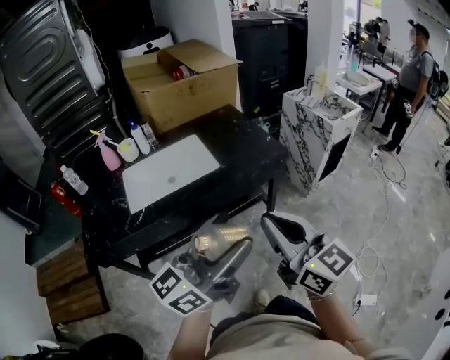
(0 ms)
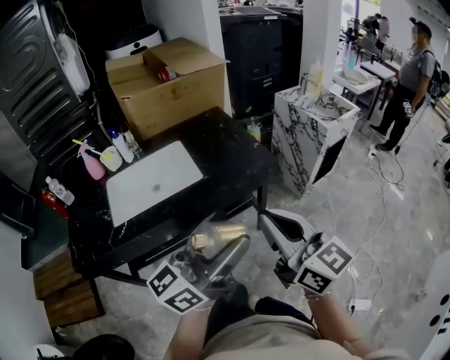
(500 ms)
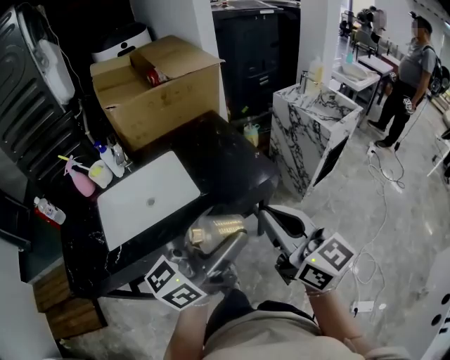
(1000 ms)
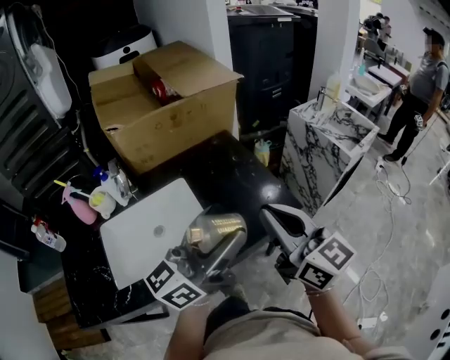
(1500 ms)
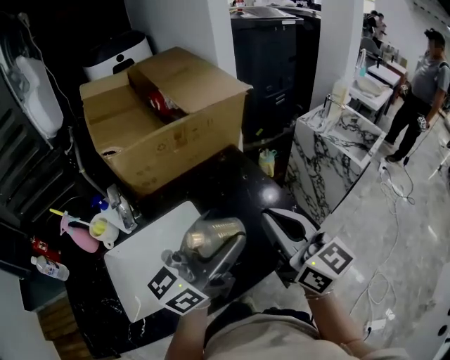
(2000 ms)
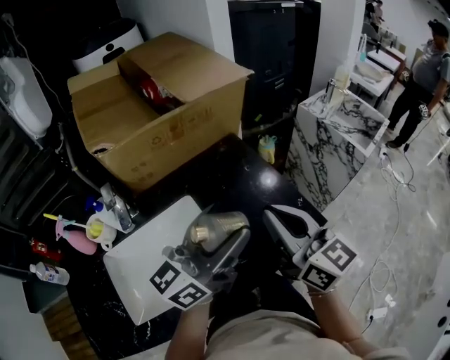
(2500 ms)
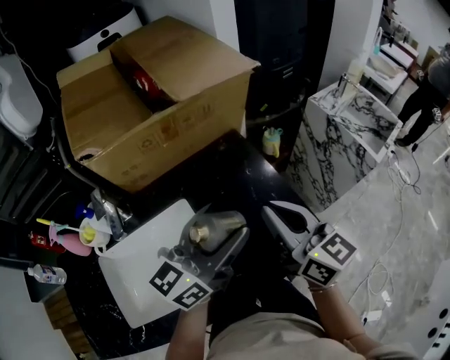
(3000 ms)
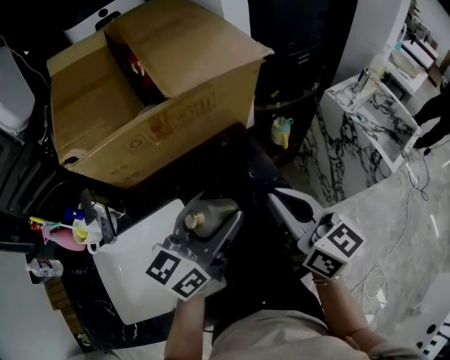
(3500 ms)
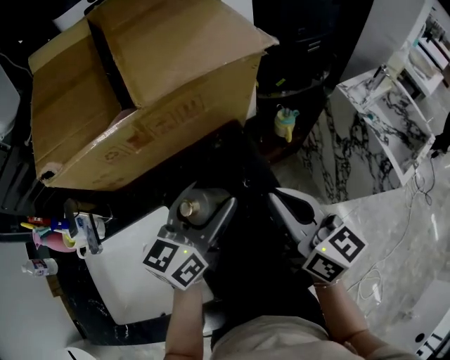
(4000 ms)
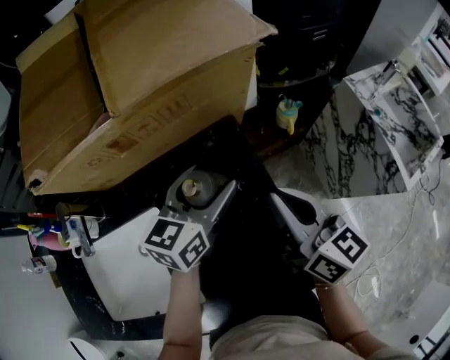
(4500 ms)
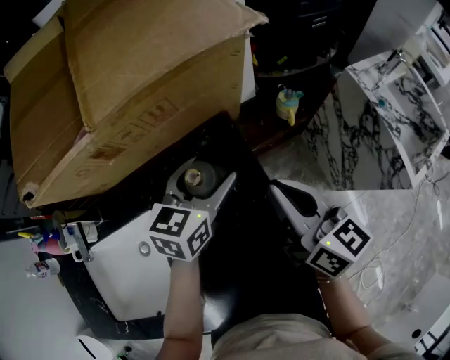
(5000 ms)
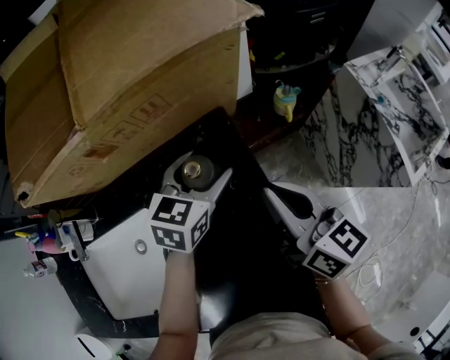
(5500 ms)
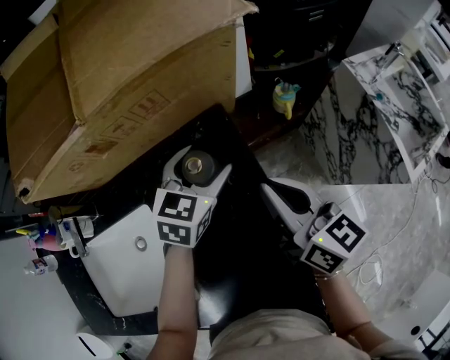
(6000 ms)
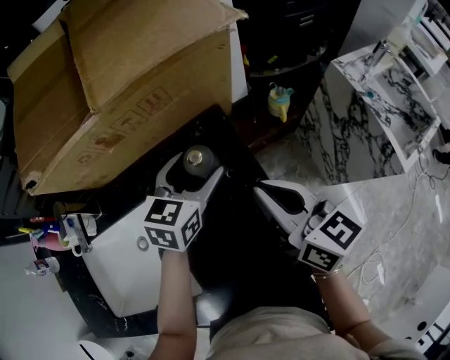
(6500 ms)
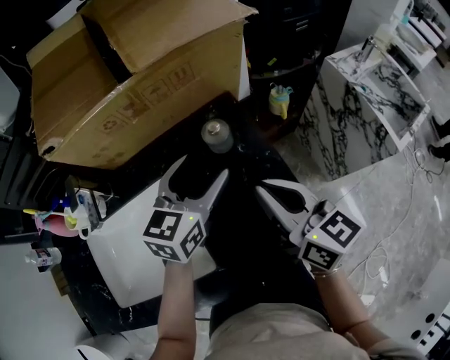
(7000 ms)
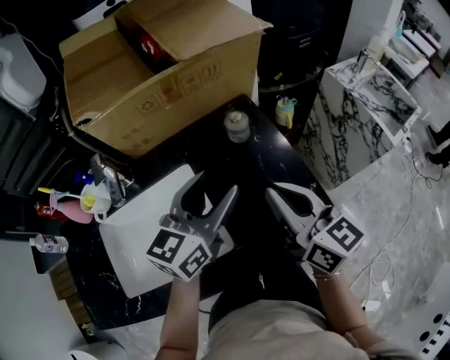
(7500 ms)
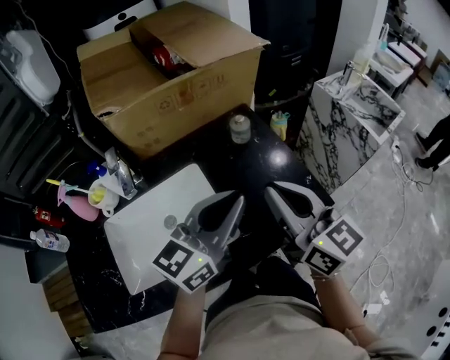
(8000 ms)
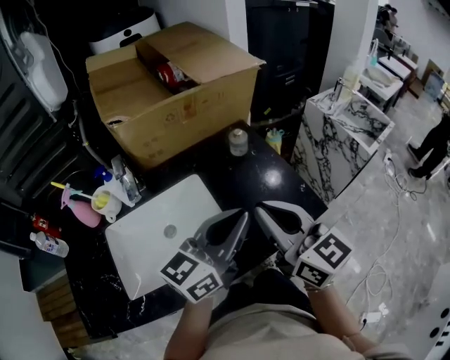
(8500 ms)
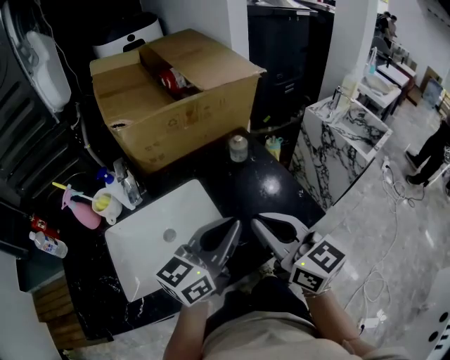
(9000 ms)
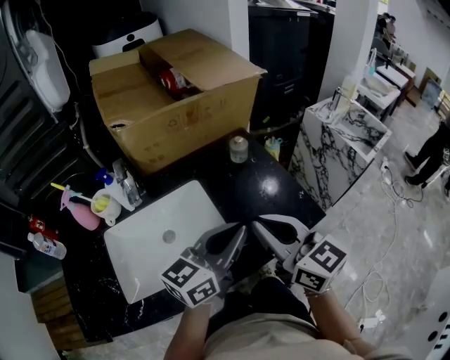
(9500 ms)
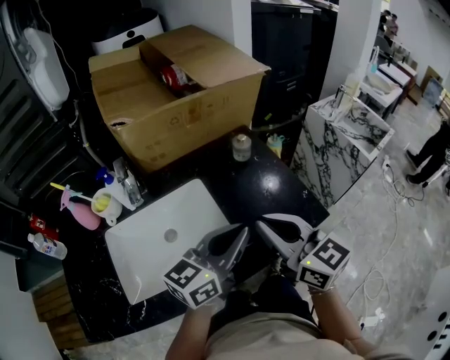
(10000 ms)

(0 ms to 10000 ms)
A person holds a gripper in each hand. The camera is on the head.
0 ms - 2000 ms: The pair of grippers is taken forward, approximately 40 cm.
2000 ms - 4000 ms: Both grippers travel together forward and downward, roughly 30 cm. The left gripper rotates roughly 30 degrees.
4000 ms - 6000 ms: The right gripper is displaced downward by about 5 cm; the left gripper is displaced downward and forward by approximately 15 cm, and turns by approximately 30 degrees.
6000 ms - 8000 ms: The left gripper is displaced backward and upward by roughly 40 cm, points its fingers approximately 40 degrees further upward, and closes its fingers. The right gripper heads backward, upward and to the left, covering roughly 30 cm, and changes its angle by approximately 20 degrees.
8000 ms - 10000 ms: The left gripper ends up roughly 5 cm from where it was; the right gripper ends up approximately 5 cm from where it was.

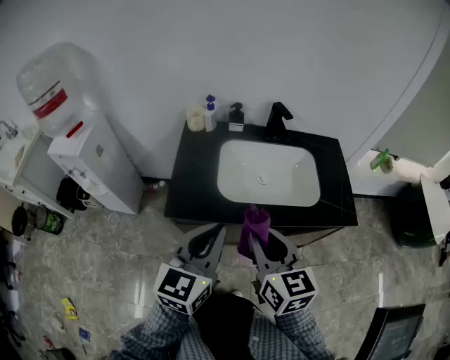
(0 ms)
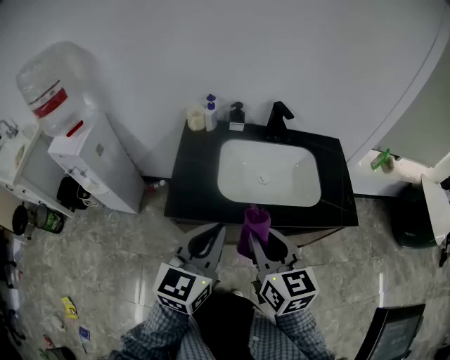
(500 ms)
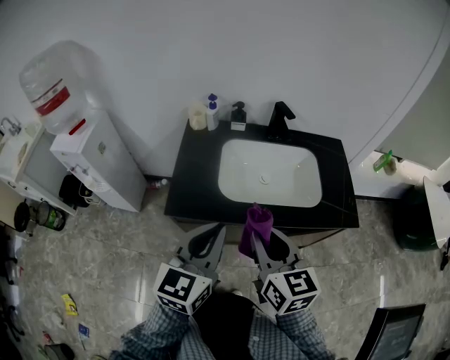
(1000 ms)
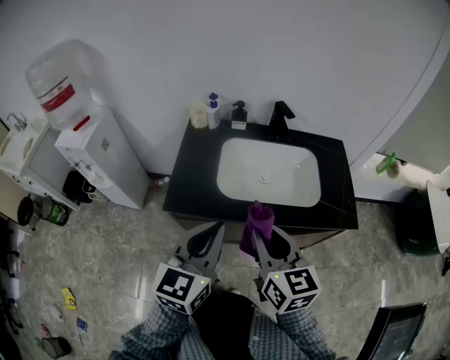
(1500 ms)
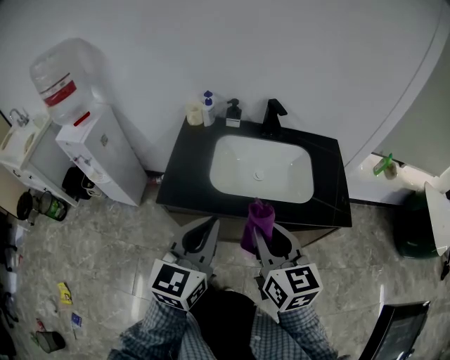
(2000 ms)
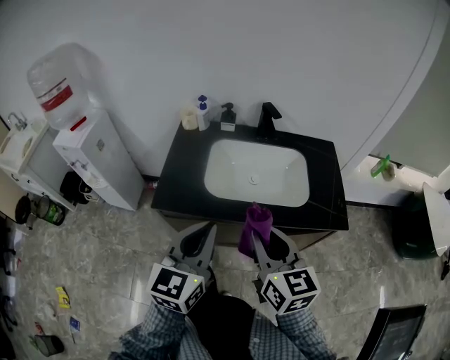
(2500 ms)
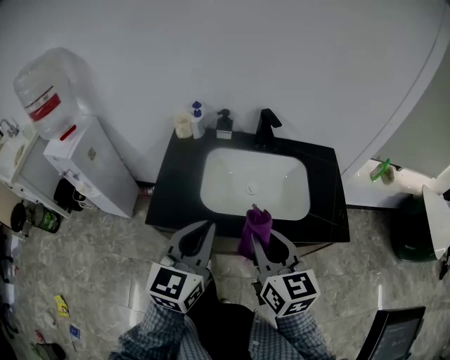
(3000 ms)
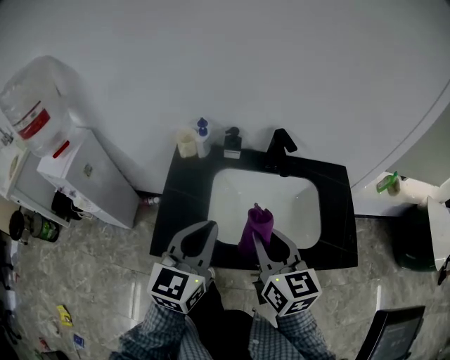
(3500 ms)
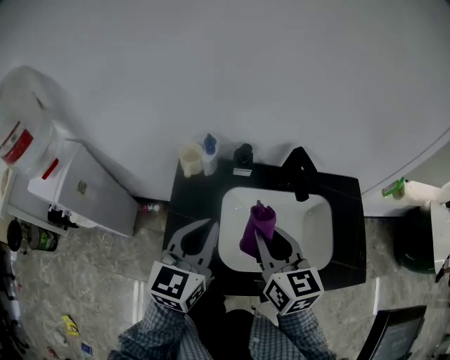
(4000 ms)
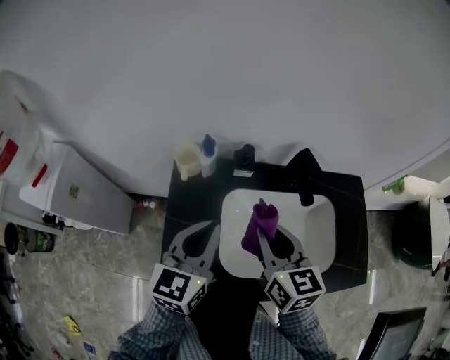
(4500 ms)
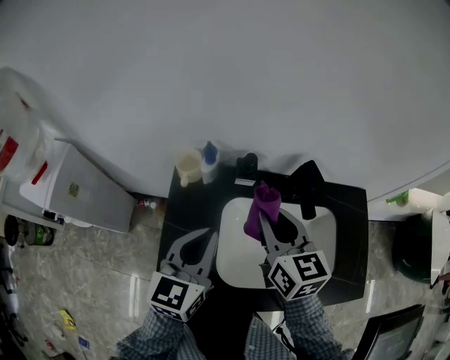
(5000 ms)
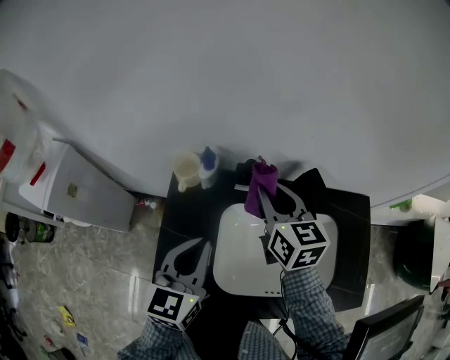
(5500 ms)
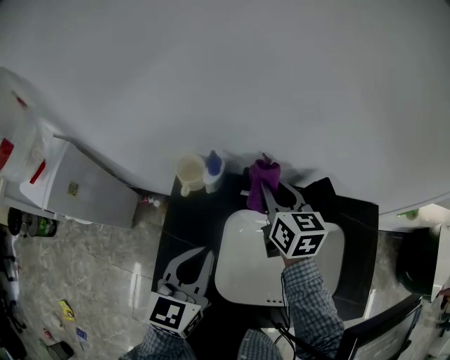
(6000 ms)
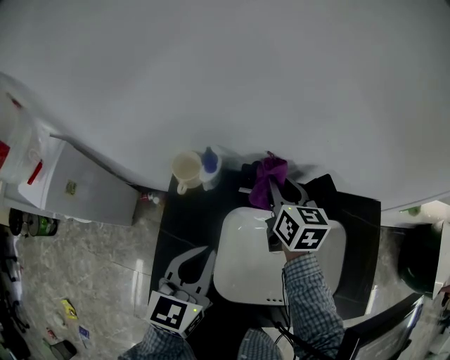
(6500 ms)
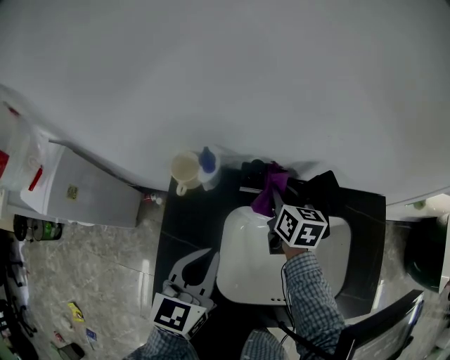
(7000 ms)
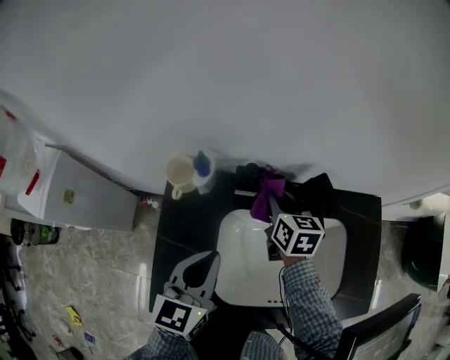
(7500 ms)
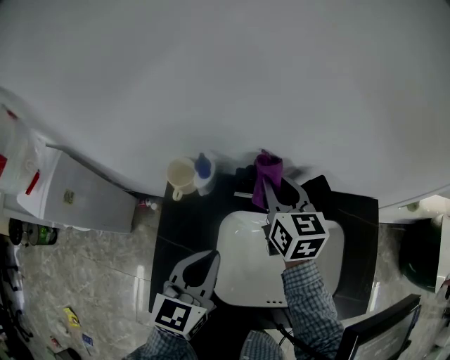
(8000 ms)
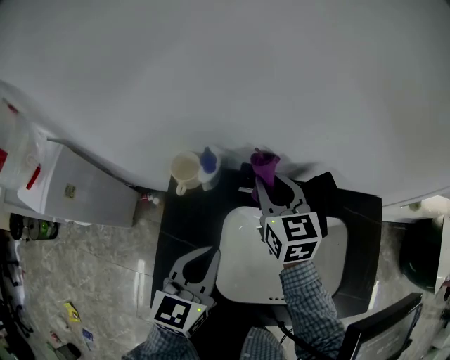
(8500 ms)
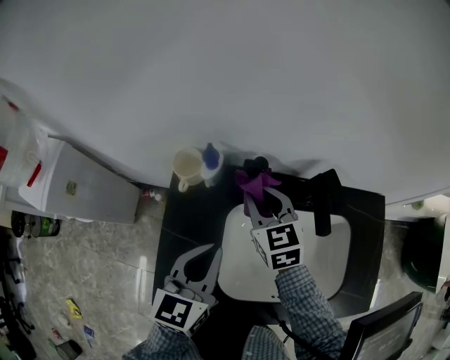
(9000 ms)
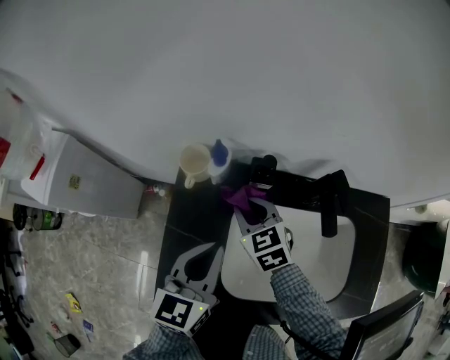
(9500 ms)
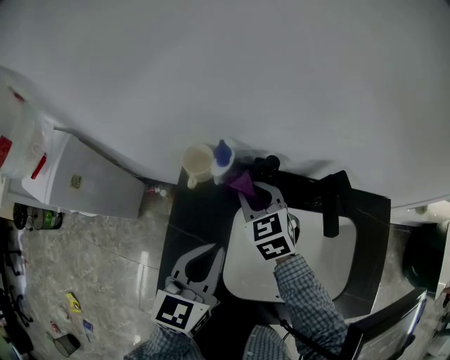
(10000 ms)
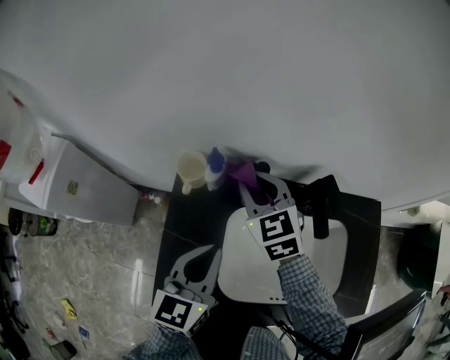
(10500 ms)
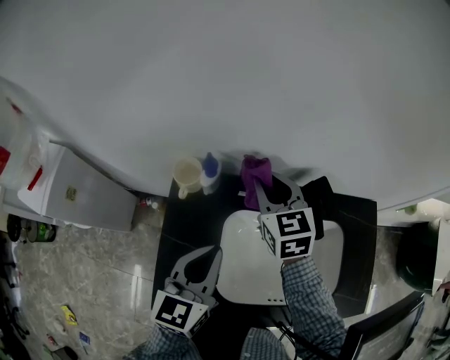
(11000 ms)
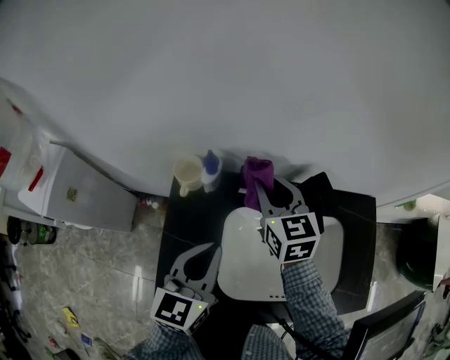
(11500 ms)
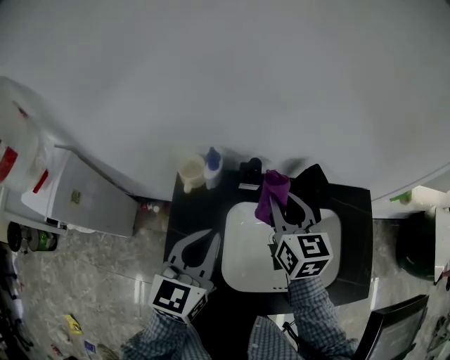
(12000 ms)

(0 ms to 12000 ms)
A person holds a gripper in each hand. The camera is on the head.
0 ms - 2000 ms: The right gripper travels to the right by roughly 5 cm. Meanwhile the left gripper ends up about 5 cm from where it was.
2000 ms - 4000 ms: The grippers both shift forward by roughly 30 cm.
4000 ms - 6000 ms: The right gripper shifts some 25 cm forward, while the left gripper heads downward and forward, covering about 10 cm.
6000 ms - 8000 ms: The right gripper goes downward and returns, some 10 cm each way.
8000 ms - 10000 ms: The right gripper moves to the left and downward, about 15 cm, and swivels roughly 30 degrees.
10000 ms - 12000 ms: The right gripper goes roughly 15 cm upward, to the right and backward, and turns by approximately 30 degrees; the left gripper shifts some 5 cm upward.

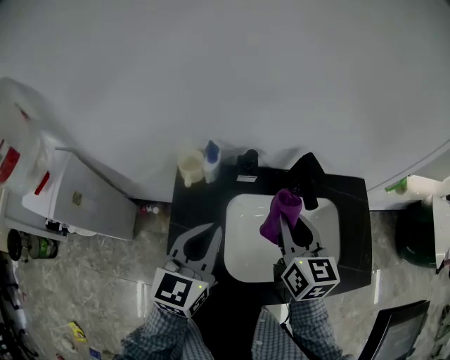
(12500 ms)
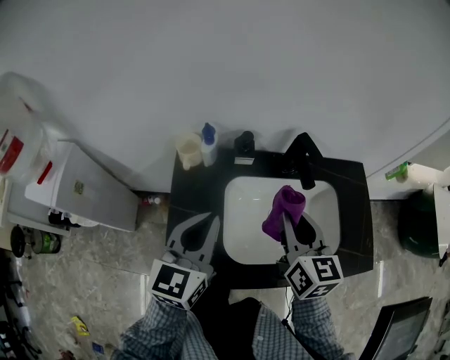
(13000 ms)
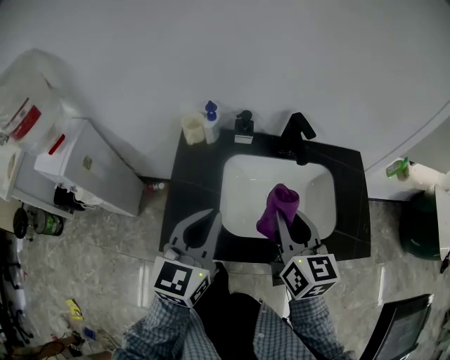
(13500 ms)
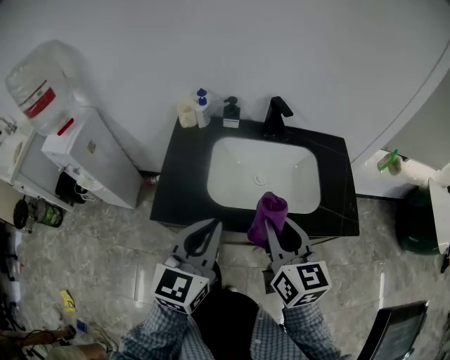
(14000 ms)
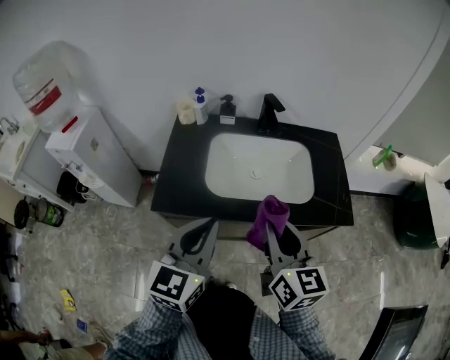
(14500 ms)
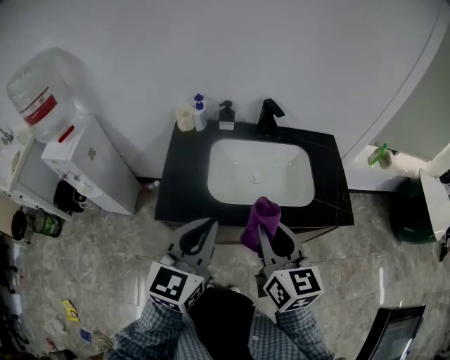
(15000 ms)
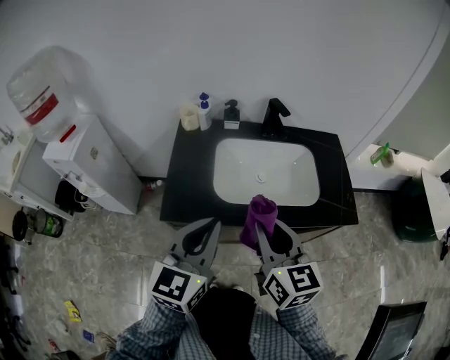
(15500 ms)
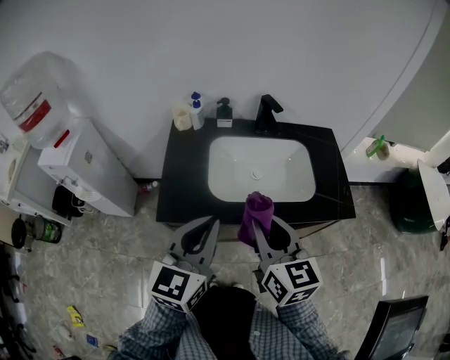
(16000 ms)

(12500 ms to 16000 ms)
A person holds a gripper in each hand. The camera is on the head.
12500 ms - 14500 ms: The left gripper goes about 35 cm backward and to the right. The right gripper shifts some 35 cm backward.
14500 ms - 16000 ms: The right gripper travels to the left by roughly 5 cm.

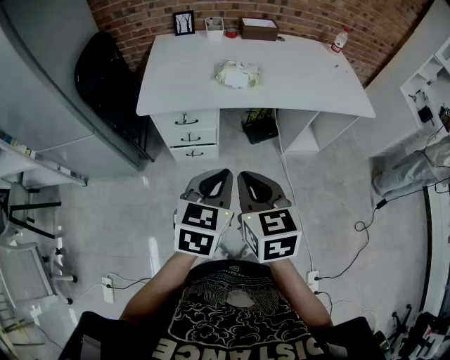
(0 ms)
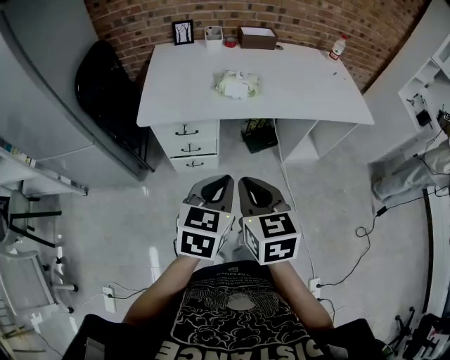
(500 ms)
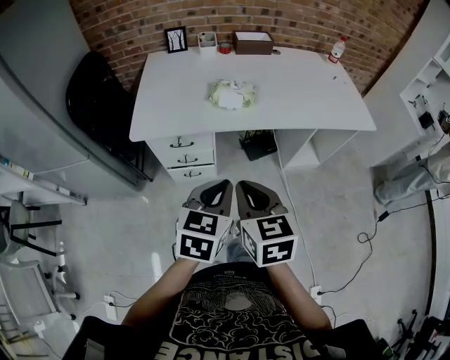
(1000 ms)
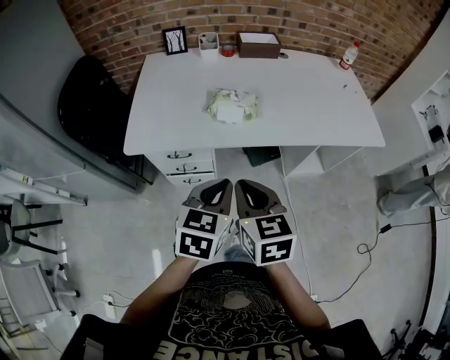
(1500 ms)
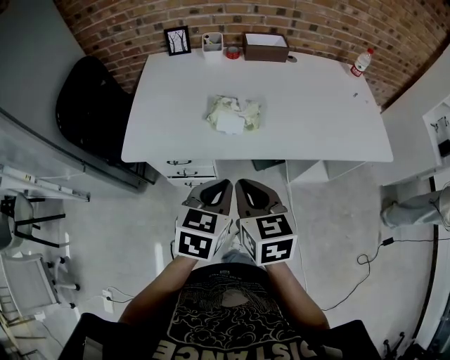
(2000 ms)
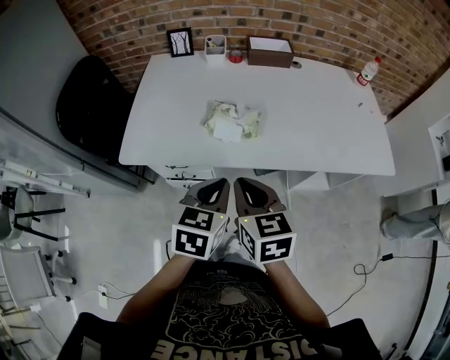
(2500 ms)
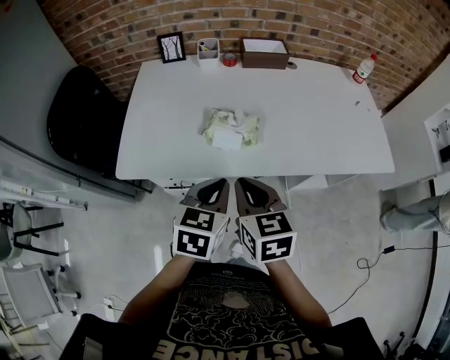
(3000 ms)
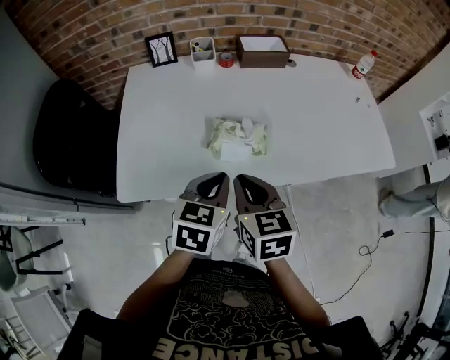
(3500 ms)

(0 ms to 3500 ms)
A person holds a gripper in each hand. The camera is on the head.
0 ms - 2000 ms: Both grippers move forward, roughly 20 cm.
2000 ms - 3500 ms: The grippers both shift forward by about 15 cm.
